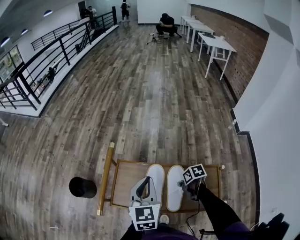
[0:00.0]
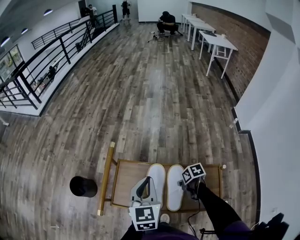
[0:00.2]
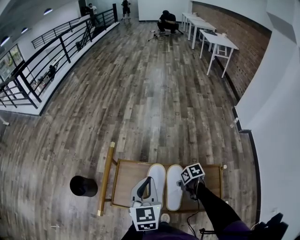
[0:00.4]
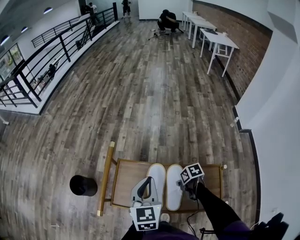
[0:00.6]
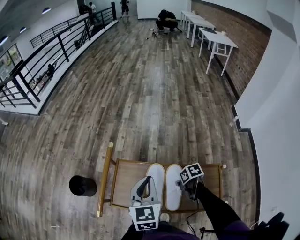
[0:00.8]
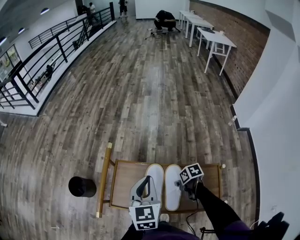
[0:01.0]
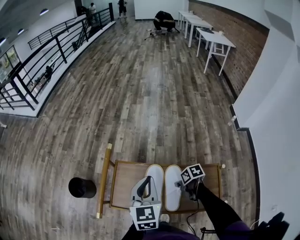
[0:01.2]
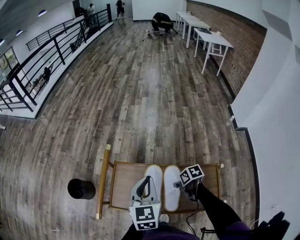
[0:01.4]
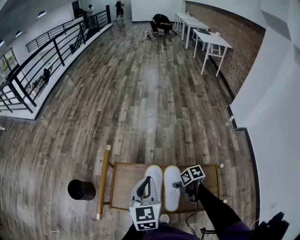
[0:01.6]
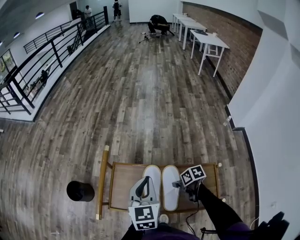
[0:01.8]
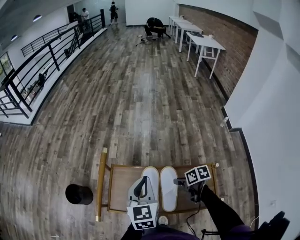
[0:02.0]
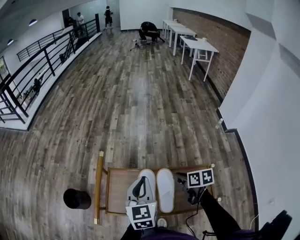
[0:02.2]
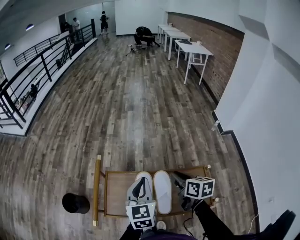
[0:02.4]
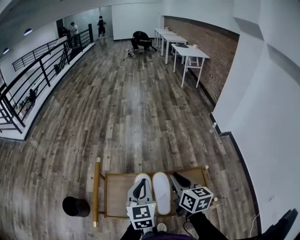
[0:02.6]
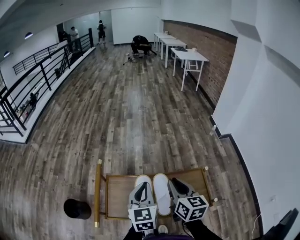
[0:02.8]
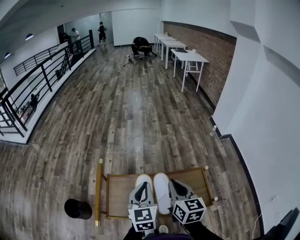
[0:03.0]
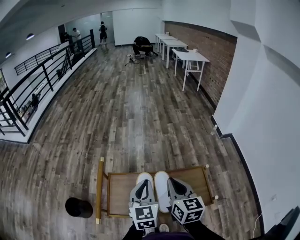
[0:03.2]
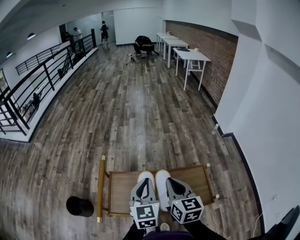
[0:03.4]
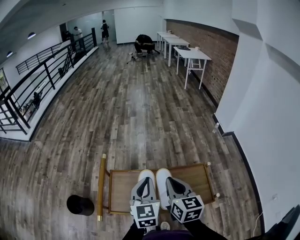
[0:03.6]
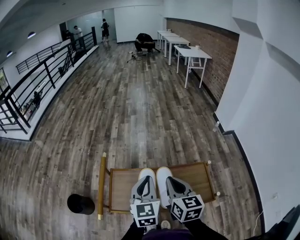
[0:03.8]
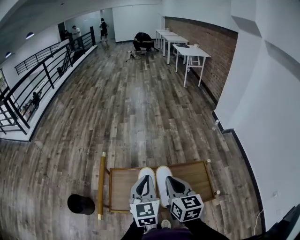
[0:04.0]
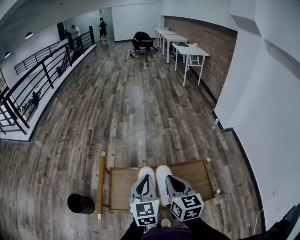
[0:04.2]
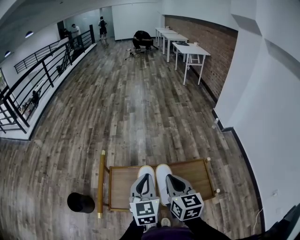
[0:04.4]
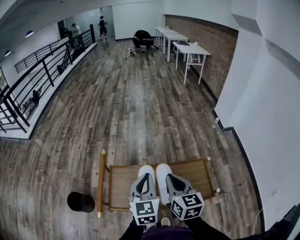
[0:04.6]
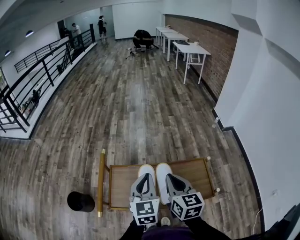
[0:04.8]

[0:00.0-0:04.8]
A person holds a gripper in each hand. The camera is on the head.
0.0 to 1.6 s: The grippers stay close to where they were, moving slightly.
1.6 to 3.2 s: The right gripper shifts roughly 25 cm upward, and tilts its fingers roughly 40 degrees upward. Meanwhile the left gripper shifts by roughly 5 cm.
3.2 to 4.8 s: The grippers make only small movements.

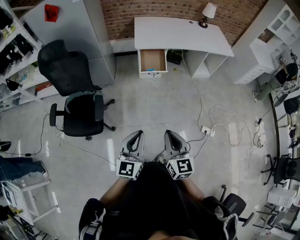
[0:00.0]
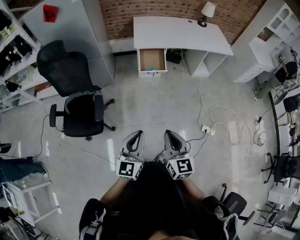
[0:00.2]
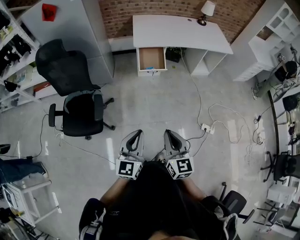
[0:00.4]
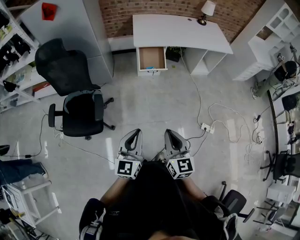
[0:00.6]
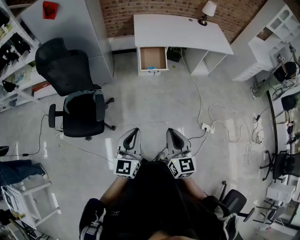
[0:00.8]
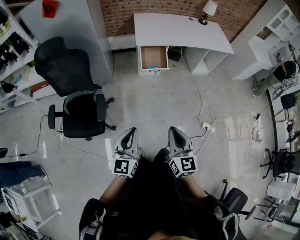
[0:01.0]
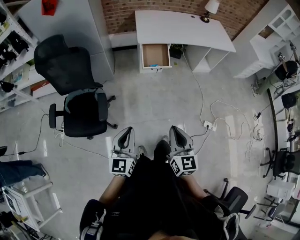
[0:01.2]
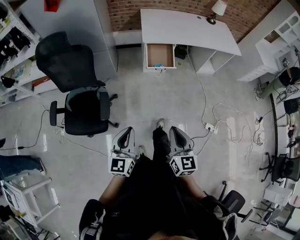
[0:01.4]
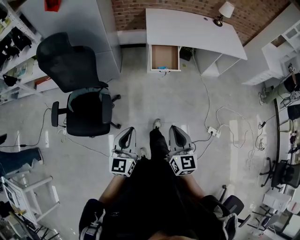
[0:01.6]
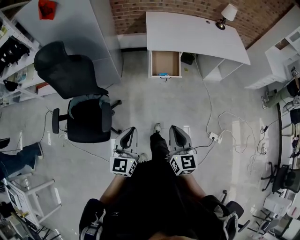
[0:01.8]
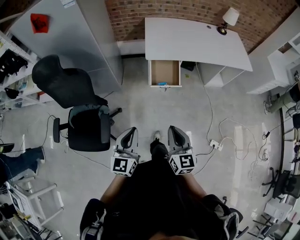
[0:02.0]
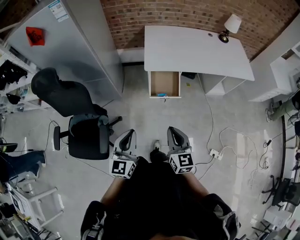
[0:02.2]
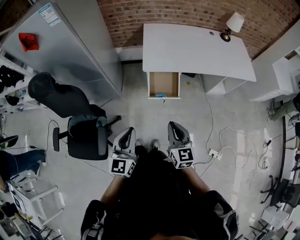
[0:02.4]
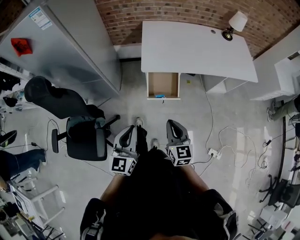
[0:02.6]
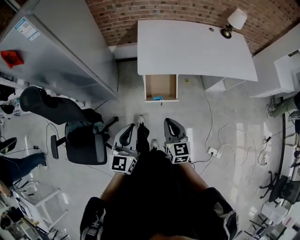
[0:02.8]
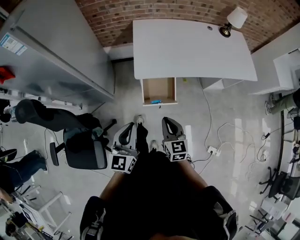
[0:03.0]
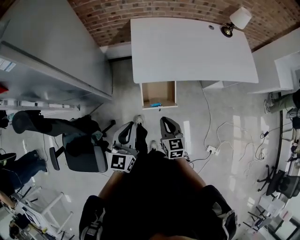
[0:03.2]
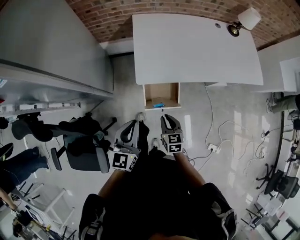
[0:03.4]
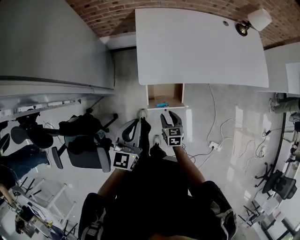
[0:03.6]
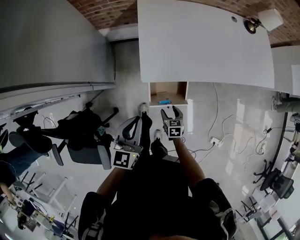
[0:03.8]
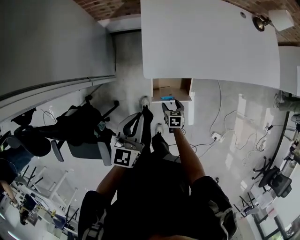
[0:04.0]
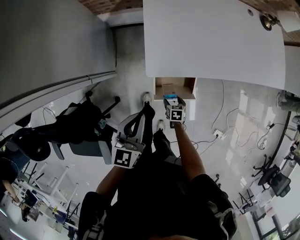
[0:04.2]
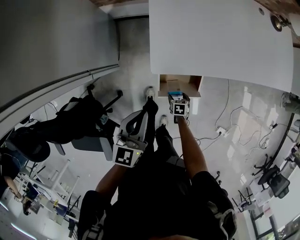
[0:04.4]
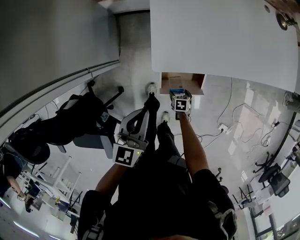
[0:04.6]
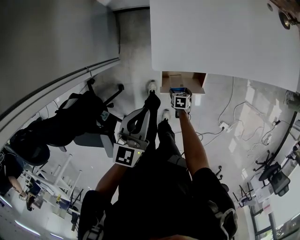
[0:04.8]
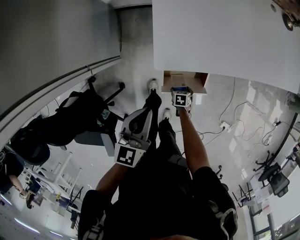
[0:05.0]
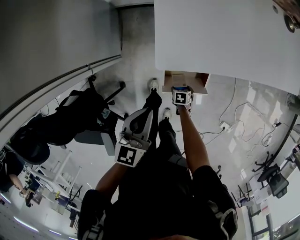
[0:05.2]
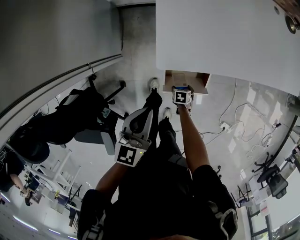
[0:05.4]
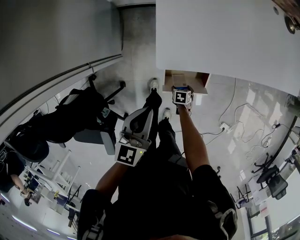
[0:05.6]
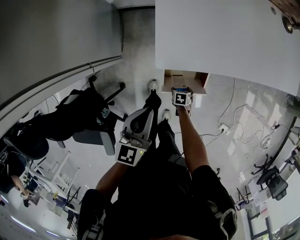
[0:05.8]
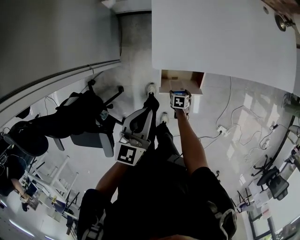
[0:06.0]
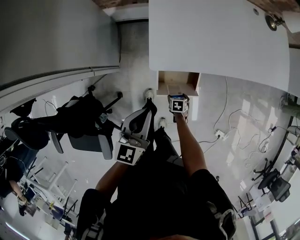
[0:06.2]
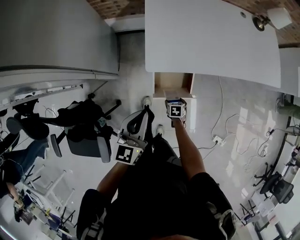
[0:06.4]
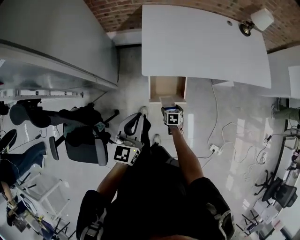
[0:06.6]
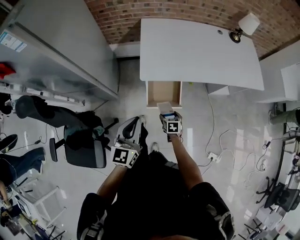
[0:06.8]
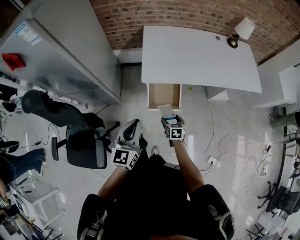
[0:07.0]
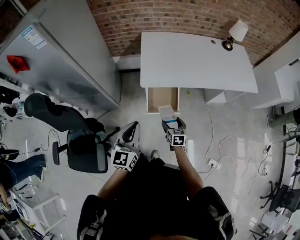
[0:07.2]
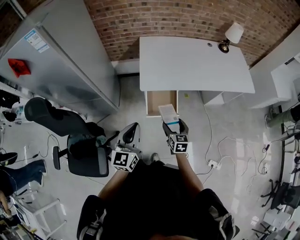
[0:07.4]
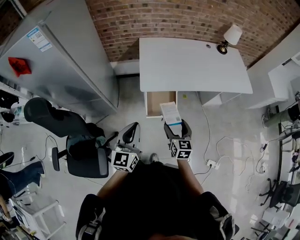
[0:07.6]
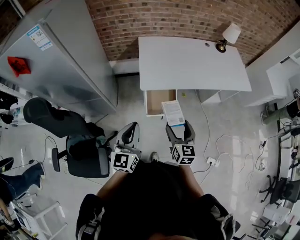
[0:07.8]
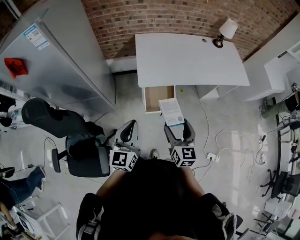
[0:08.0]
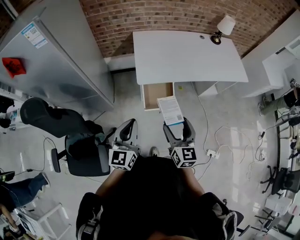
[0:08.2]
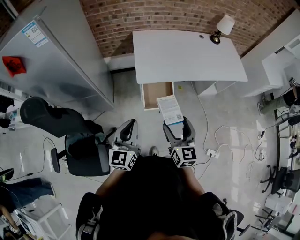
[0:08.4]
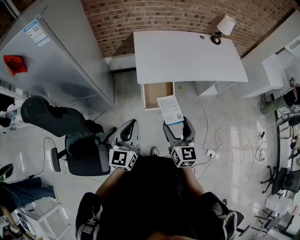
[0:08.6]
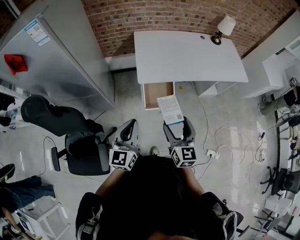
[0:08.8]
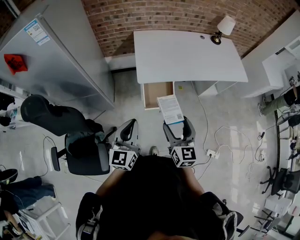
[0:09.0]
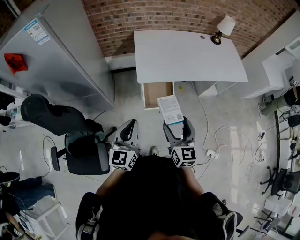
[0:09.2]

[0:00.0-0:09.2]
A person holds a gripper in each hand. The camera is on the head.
0.0 to 1.6 s: The right gripper goes approximately 15 cm forward and to the left, while the left gripper travels to the left and forward by some 15 cm.
1.6 to 3.0 s: The two grippers travel together, forward, roughly 50 cm.
3.0 to 4.6 s: The left gripper shifts by approximately 30 cm, and rotates about 20 degrees. The right gripper travels downward by some 50 cm, tilts its fingers approximately 50 degrees downward, and opens up.
4.6 to 6.2 s: The left gripper ends up approximately 5 cm from where it was.
6.2 to 7.6 s: The left gripper shifts by some 25 cm, and turns by about 20 degrees. Meanwhile the right gripper is displaced upward by roughly 50 cm, and points its fingers approximately 50 degrees further upward.
7.6 to 9.2 s: The right gripper shifts some 10 cm upward and backward.

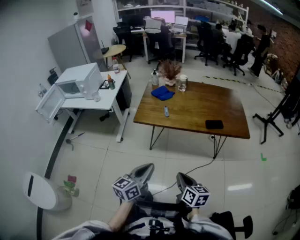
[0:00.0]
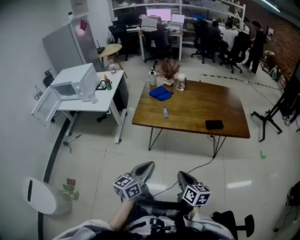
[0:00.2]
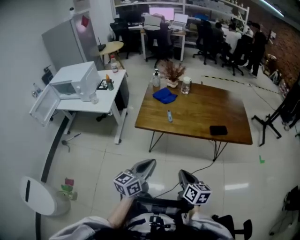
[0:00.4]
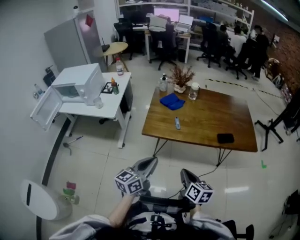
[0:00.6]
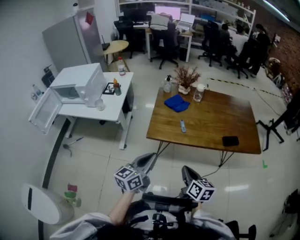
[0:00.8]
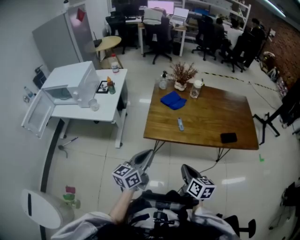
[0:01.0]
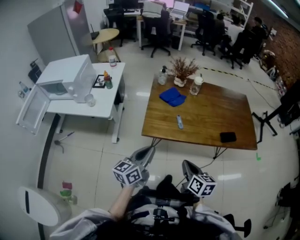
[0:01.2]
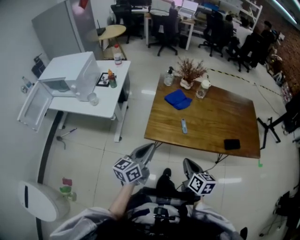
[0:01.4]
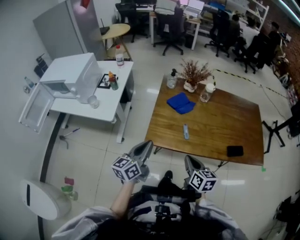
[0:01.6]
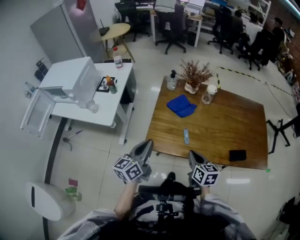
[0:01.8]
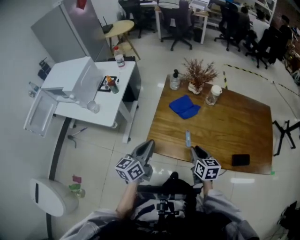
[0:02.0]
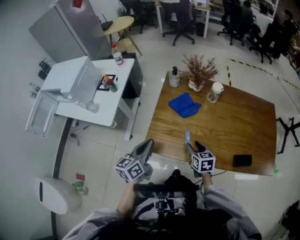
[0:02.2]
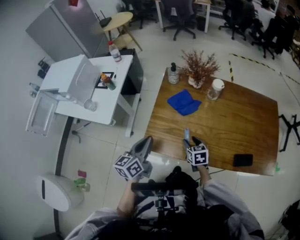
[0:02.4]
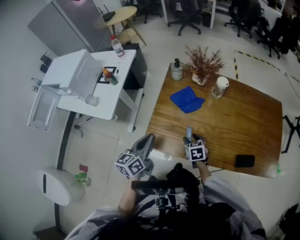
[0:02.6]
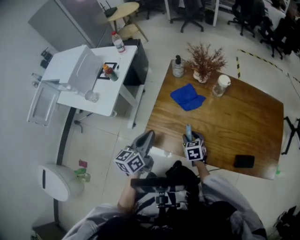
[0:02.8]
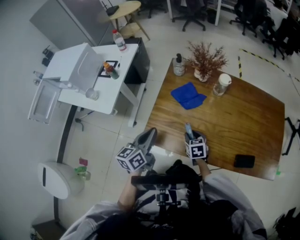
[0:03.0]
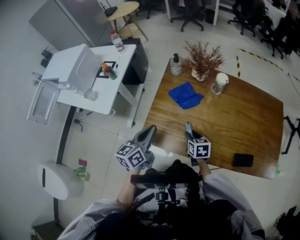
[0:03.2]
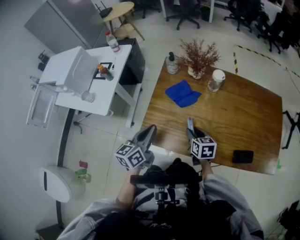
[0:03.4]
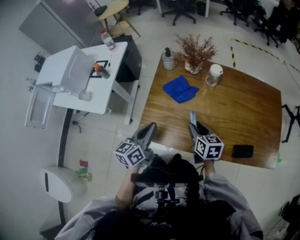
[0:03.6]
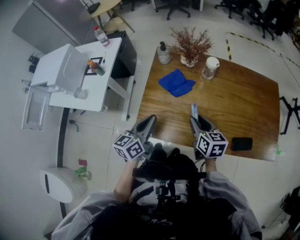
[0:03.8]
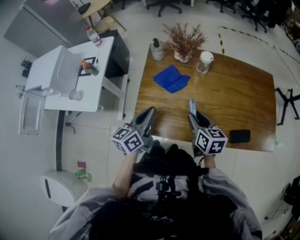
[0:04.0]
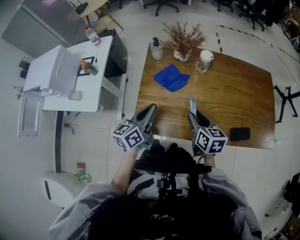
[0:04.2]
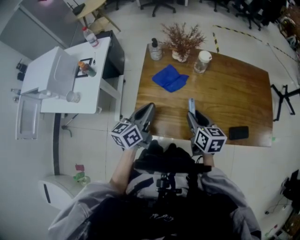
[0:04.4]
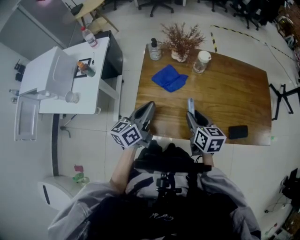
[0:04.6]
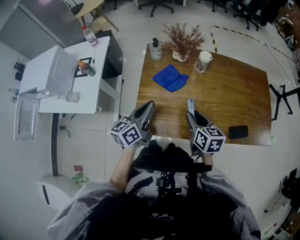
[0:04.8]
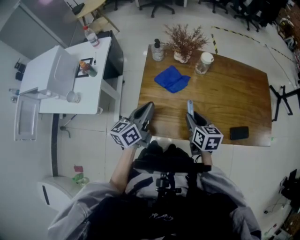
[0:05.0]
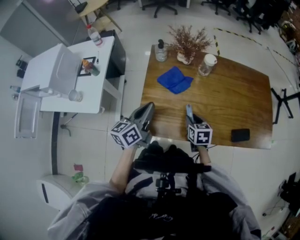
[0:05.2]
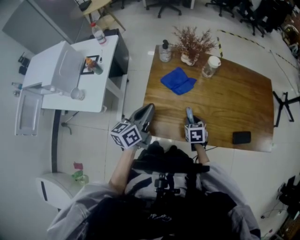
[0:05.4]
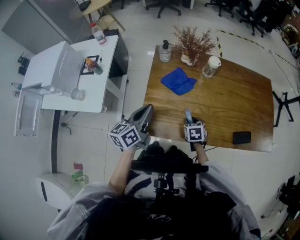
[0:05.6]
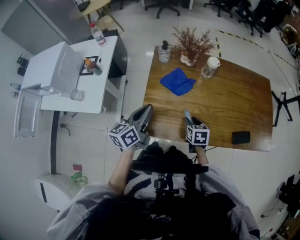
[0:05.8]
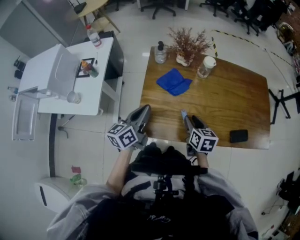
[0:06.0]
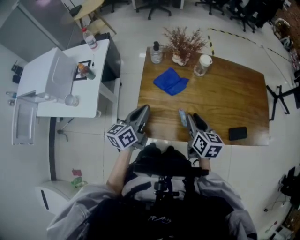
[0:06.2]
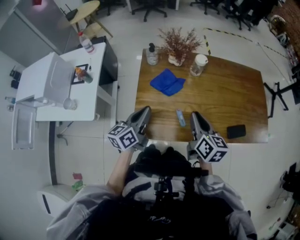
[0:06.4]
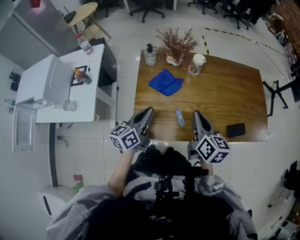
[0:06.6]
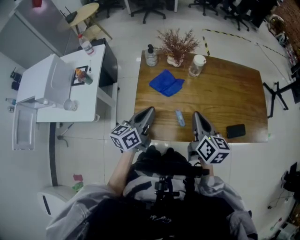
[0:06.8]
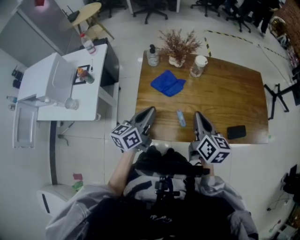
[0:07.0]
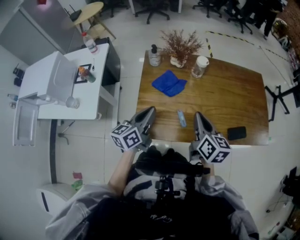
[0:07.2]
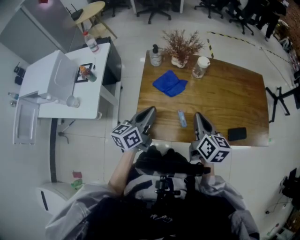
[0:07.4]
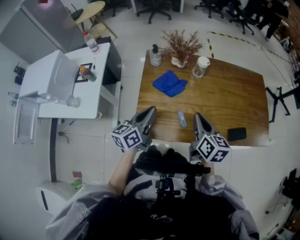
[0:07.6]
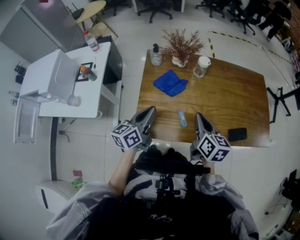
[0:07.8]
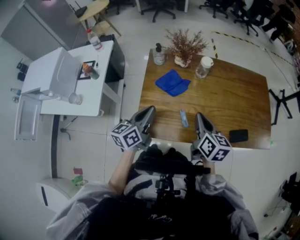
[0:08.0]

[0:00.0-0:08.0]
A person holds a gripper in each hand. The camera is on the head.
0.0 to 1.6 s: Both grippers travel together forward and to the left, about 35 cm.
1.6 to 3.2 s: The left gripper is displaced forward and to the right by roughly 15 cm. Meanwhile the right gripper heads forward and downward, covering roughly 25 cm, turns by roughly 20 degrees, and opens up.
3.2 to 4.8 s: The left gripper shifts about 5 cm forward. Meanwhile the right gripper goes about 15 cm upward, and turns by about 20 degrees.
4.8 to 6.4 s: The right gripper reaches some 15 cm downward, then returns.
6.4 to 8.0 s: There are only small adjustments of the grippers.

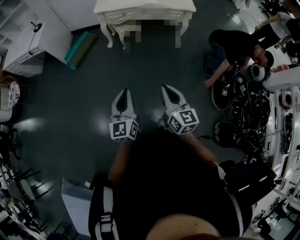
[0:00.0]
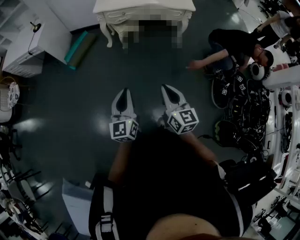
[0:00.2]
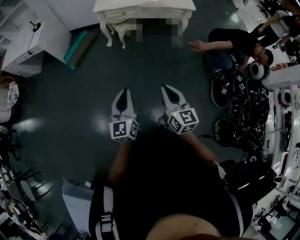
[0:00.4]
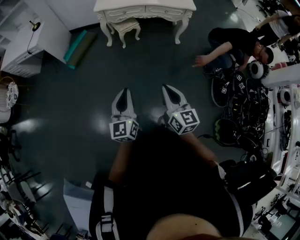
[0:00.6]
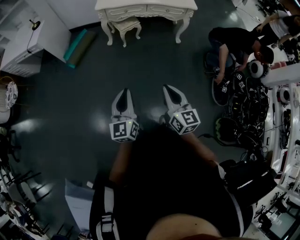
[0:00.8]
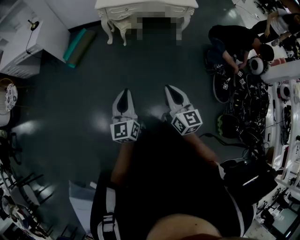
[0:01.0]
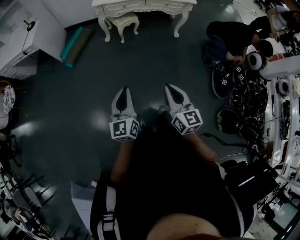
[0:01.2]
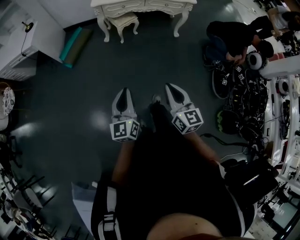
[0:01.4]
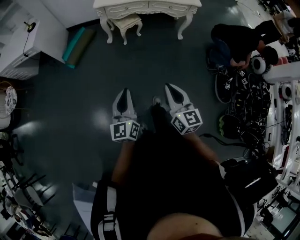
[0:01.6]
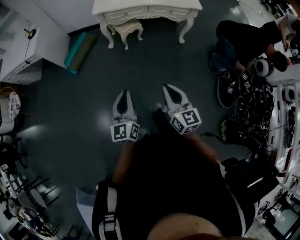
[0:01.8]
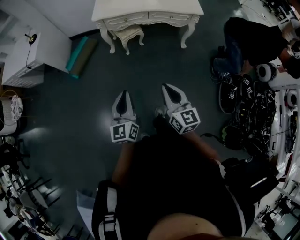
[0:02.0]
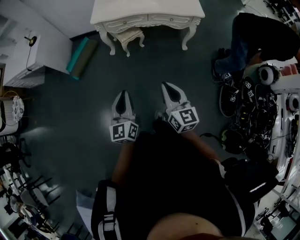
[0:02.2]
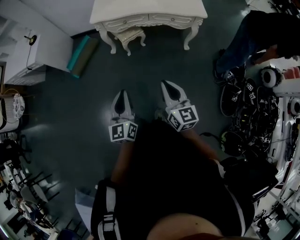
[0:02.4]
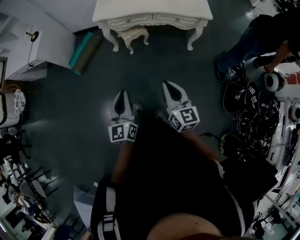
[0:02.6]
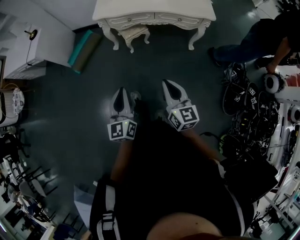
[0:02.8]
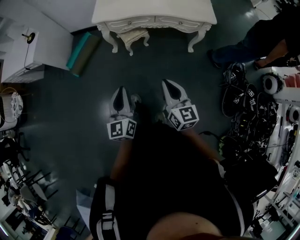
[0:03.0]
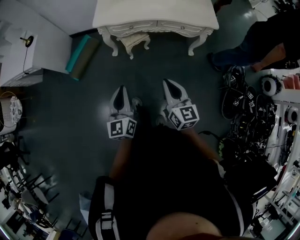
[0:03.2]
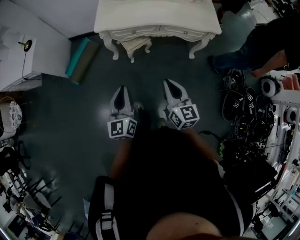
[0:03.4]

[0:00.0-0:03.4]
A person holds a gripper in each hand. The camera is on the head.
0.0 to 1.6 s: The left gripper travels to the left and forward by approximately 10 cm. Meanwhile the right gripper heads to the left, covering roughly 5 cm.
1.6 to 3.4 s: Both grippers move forward, about 40 cm.
